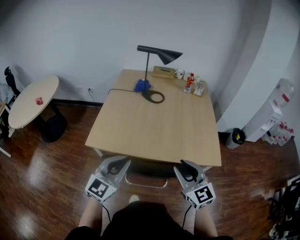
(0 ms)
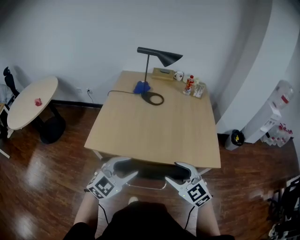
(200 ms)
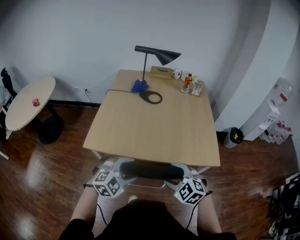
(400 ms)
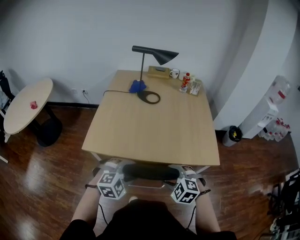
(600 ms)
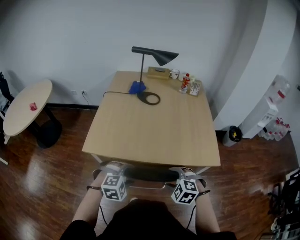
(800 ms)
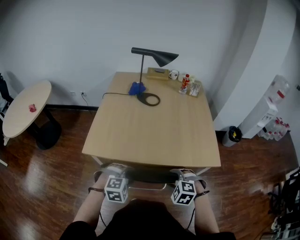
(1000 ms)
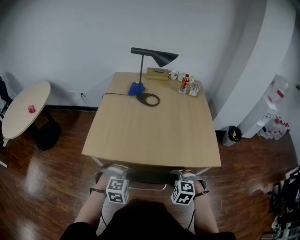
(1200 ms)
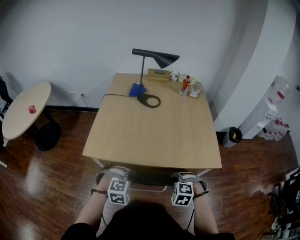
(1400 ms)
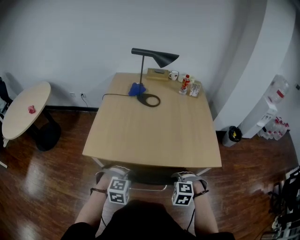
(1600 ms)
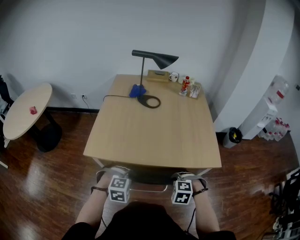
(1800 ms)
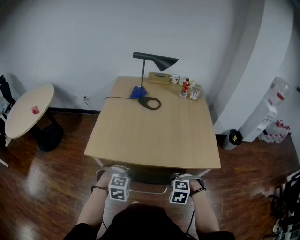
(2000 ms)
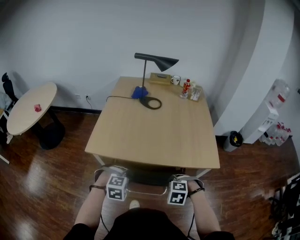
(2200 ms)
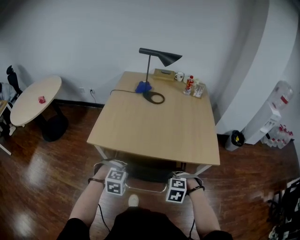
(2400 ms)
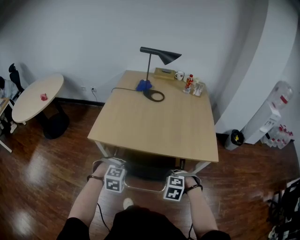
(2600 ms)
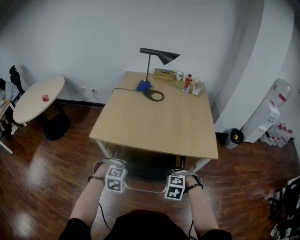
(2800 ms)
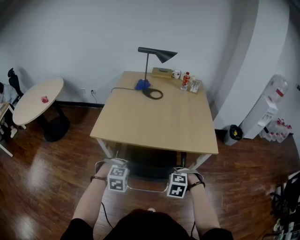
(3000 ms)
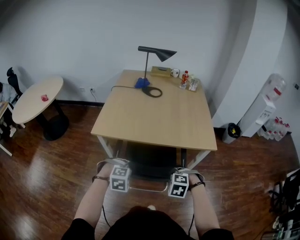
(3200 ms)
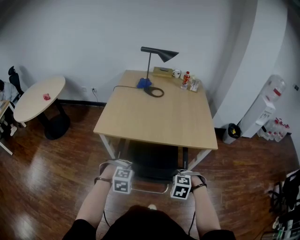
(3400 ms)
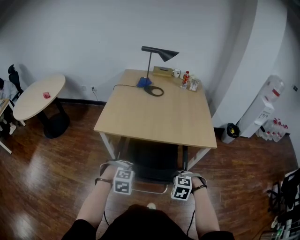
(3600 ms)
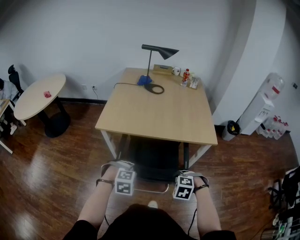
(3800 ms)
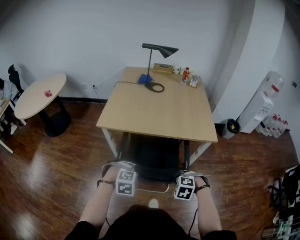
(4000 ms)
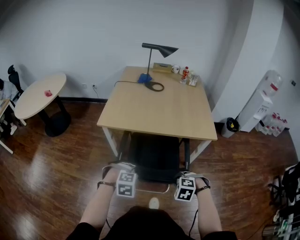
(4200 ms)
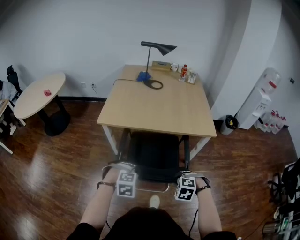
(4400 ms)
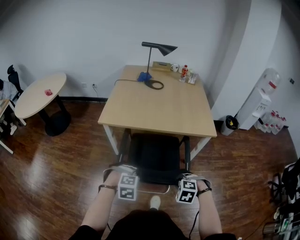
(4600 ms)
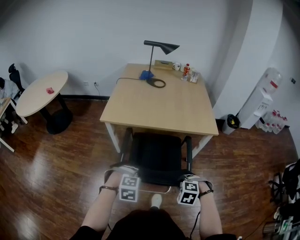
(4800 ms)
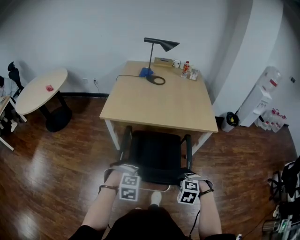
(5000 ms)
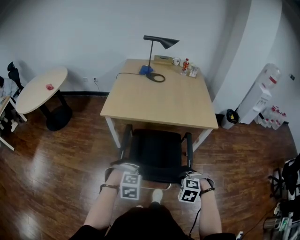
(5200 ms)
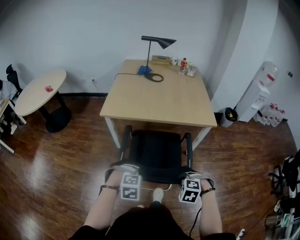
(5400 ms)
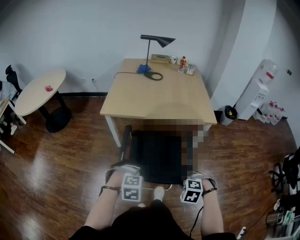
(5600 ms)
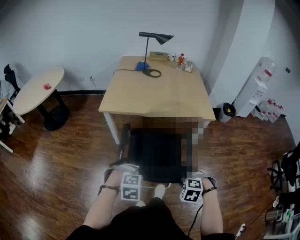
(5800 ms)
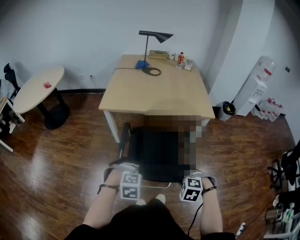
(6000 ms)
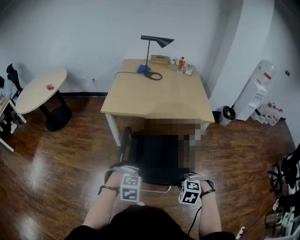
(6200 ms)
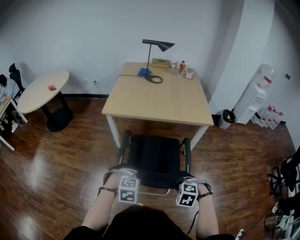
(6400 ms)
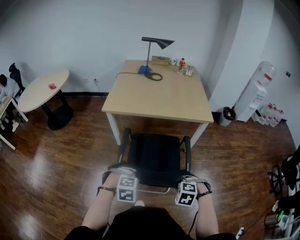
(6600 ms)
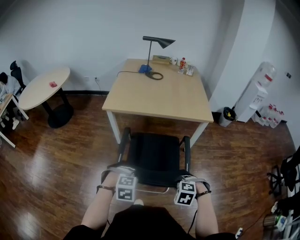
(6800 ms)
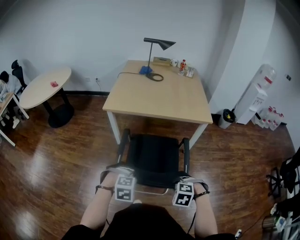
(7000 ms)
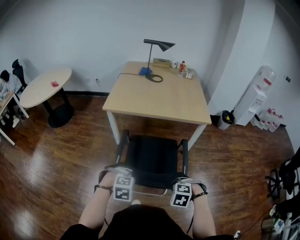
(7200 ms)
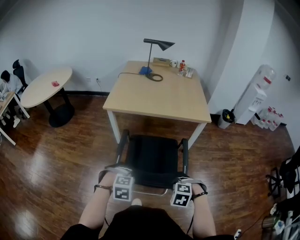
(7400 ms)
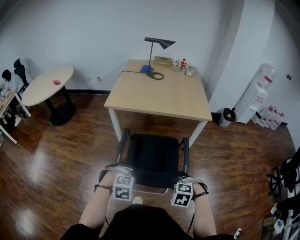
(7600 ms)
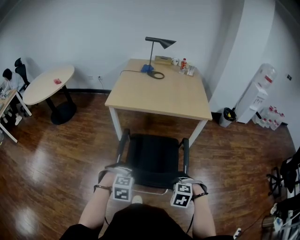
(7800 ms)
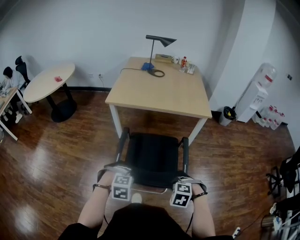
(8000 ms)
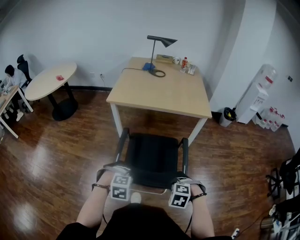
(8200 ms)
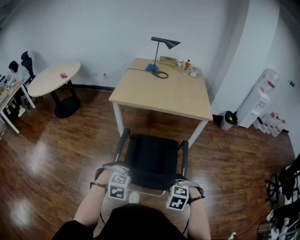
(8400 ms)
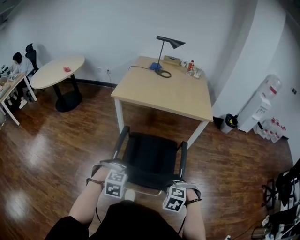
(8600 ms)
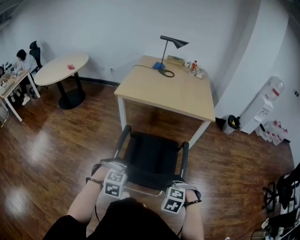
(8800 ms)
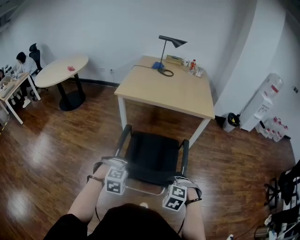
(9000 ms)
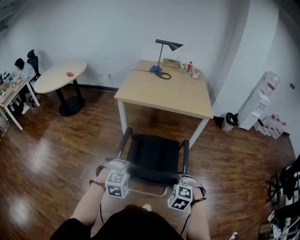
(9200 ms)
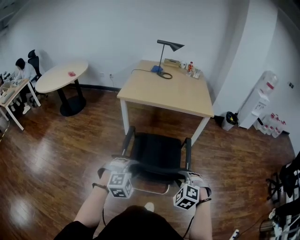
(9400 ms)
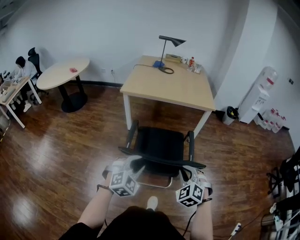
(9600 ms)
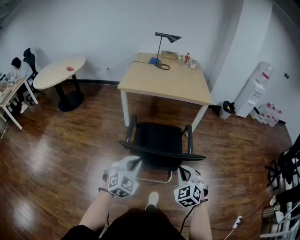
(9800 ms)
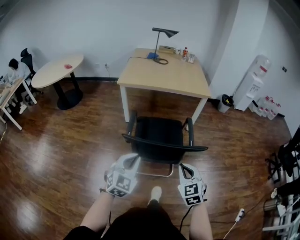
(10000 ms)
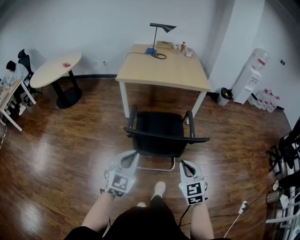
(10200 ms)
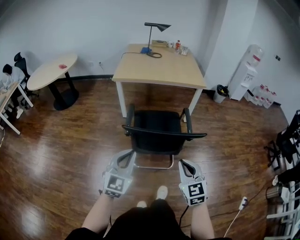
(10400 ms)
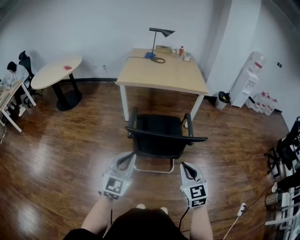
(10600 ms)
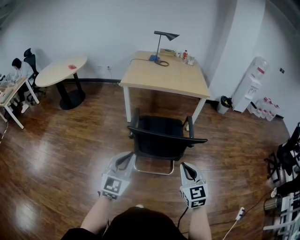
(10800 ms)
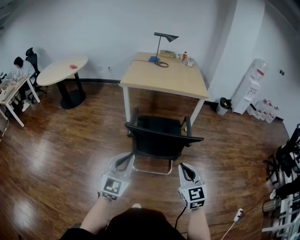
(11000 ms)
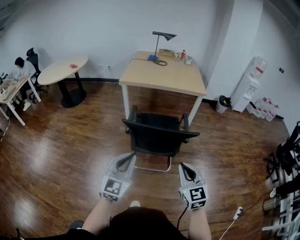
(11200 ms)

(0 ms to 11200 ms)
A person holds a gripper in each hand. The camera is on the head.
0 ms - 1600 ms: The two grippers go approximately 20 cm downward. The right gripper angles its fingers downward, by about 60 degrees, and opens and closes again. The left gripper points its fingers approximately 60 degrees further downward, and opens and closes again.
1600 ms - 3200 ms: The left gripper ends up about 15 cm from where it was, while the right gripper shifts by some 15 cm.
3200 ms - 4800 ms: Both grippers travel together backward, roughly 15 cm.
4800 ms - 6400 ms: The left gripper ends up some 10 cm from where it was; the right gripper shifts by some 10 cm.
6400 ms - 8000 ms: The left gripper moves about 10 cm. The right gripper shifts by approximately 10 cm.
8000 ms - 9600 ms: Both grippers move upward, about 10 cm. The left gripper points its fingers about 40 degrees further upward. Meanwhile the right gripper points its fingers about 40 degrees further upward.
9600 ms - 11200 ms: The left gripper heads backward and upward, covering approximately 20 cm, swivels some 40 degrees, and closes, while the right gripper shifts roughly 20 cm backward, and turns by about 40 degrees.

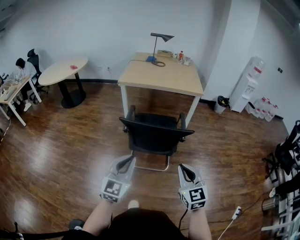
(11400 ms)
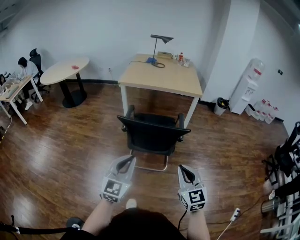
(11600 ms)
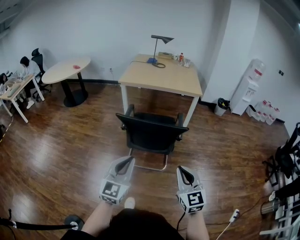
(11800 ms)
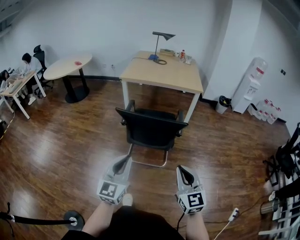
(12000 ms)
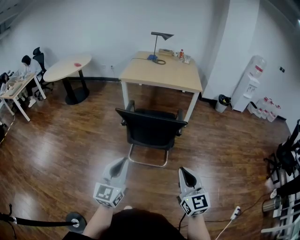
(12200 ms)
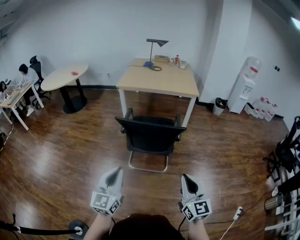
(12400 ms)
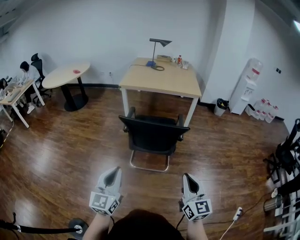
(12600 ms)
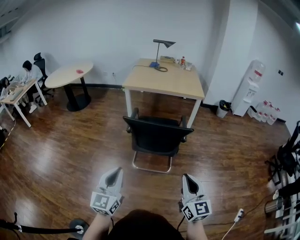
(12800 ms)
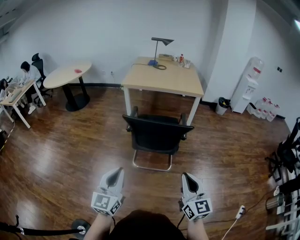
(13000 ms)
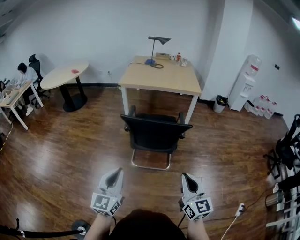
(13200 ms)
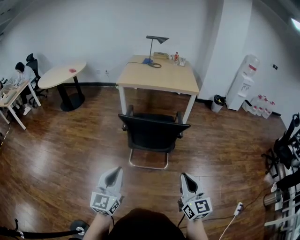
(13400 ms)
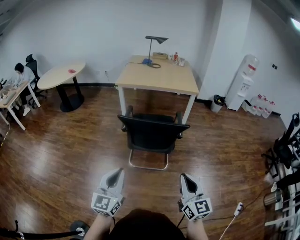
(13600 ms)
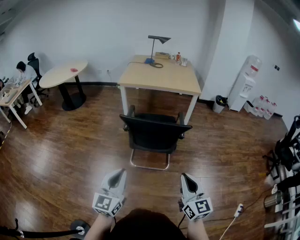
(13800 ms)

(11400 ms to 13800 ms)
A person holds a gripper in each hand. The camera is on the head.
11400 ms - 12600 ms: Both grippers travel together backward, approximately 10 cm. The right gripper swivels roughly 20 degrees.
12600 ms - 13800 ms: The grippers move only a little.

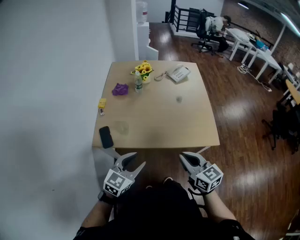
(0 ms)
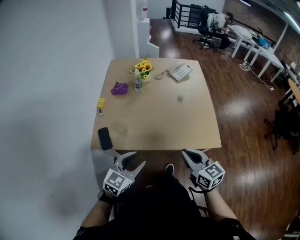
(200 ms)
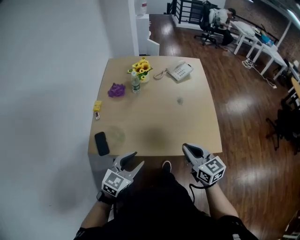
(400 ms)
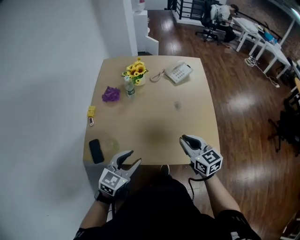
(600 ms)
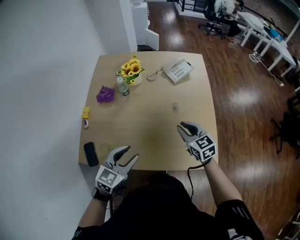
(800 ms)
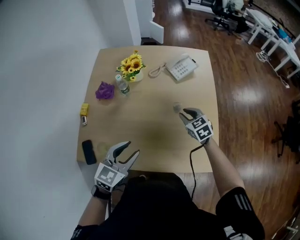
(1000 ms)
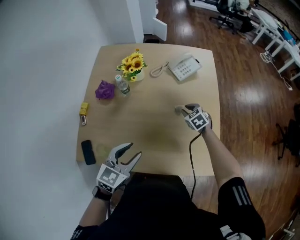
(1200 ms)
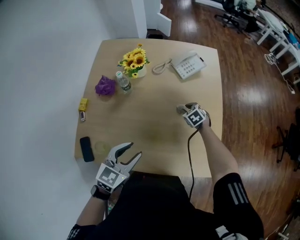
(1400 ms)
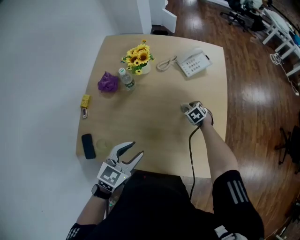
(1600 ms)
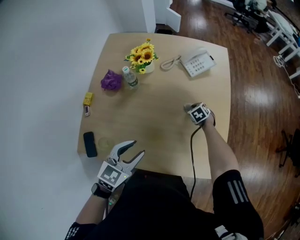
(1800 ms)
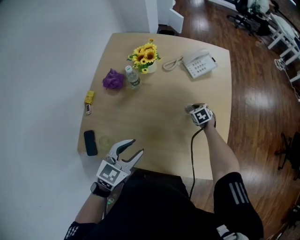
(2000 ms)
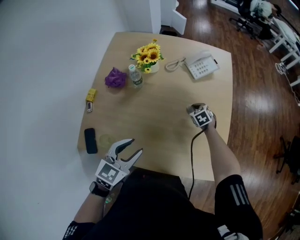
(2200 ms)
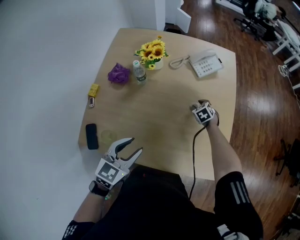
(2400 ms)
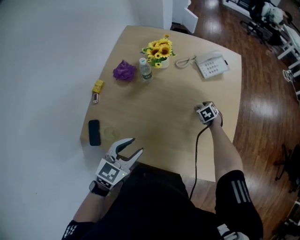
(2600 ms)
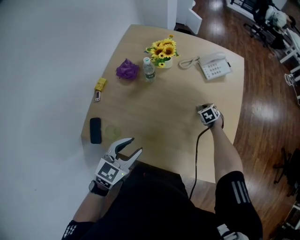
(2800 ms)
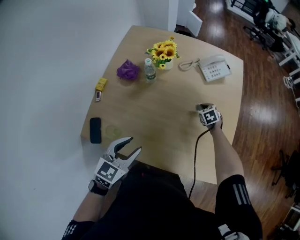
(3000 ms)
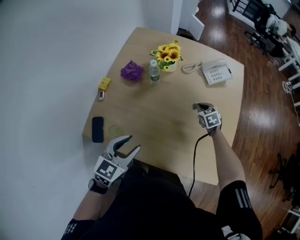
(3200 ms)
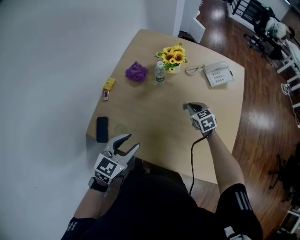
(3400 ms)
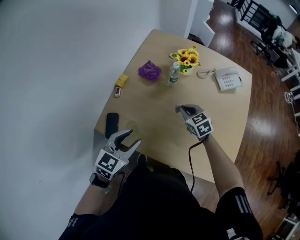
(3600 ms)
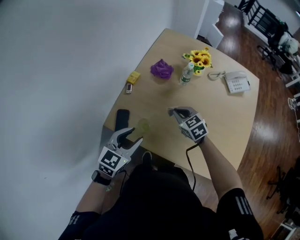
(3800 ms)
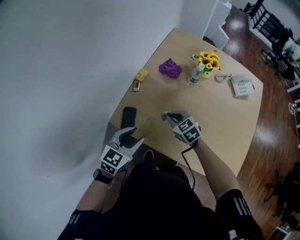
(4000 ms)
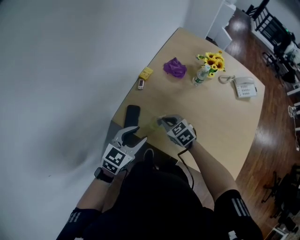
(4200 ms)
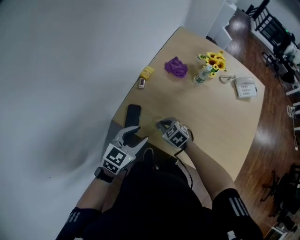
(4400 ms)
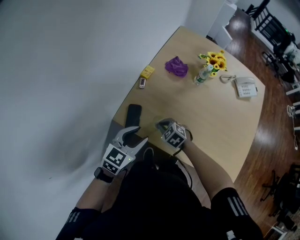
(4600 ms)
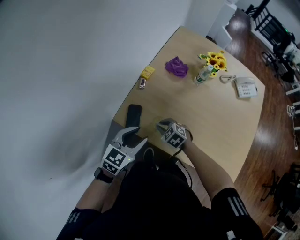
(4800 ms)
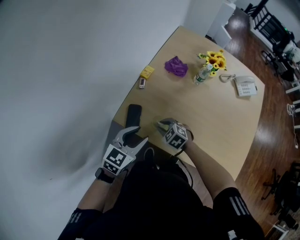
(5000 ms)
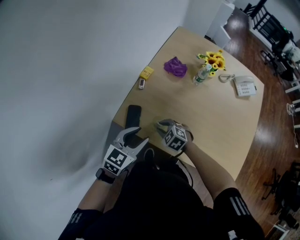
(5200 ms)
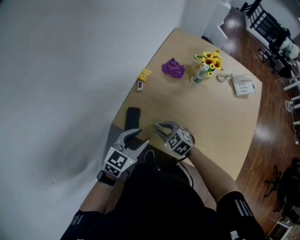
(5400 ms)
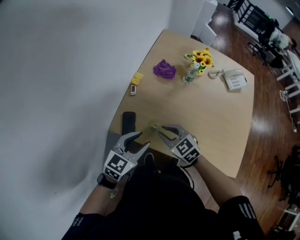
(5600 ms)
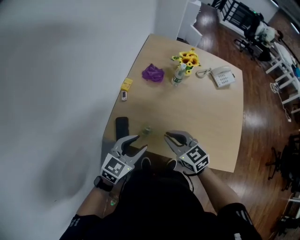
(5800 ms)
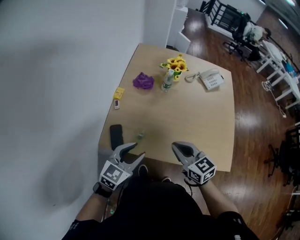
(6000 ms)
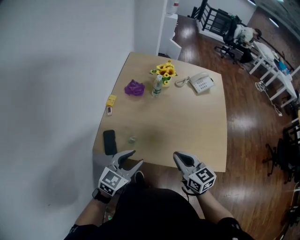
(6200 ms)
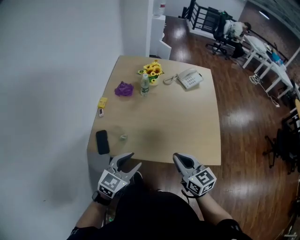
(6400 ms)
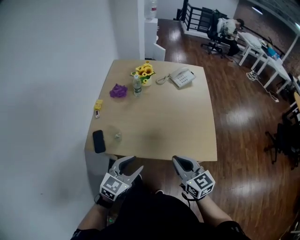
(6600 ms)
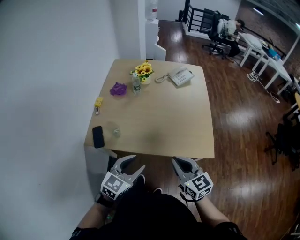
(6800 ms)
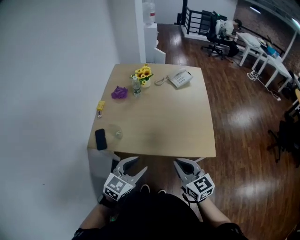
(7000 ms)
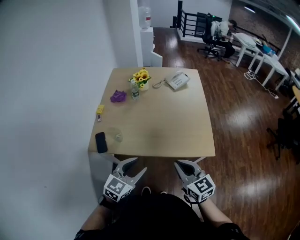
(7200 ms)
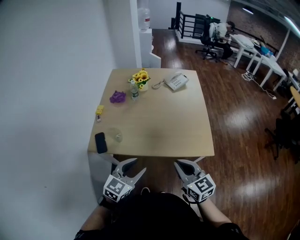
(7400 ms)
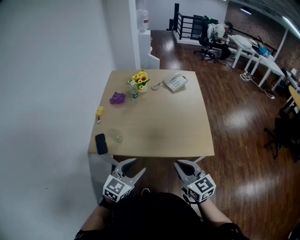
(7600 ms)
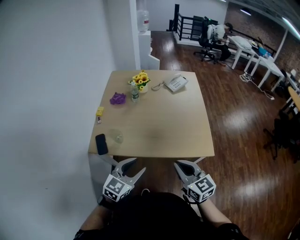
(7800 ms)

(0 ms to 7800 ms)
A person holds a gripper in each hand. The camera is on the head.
0 ms - 1600 ms: The right gripper shifts roughly 60 cm forward and downward, points its fingers roughly 50 degrees further downward, and opens up. Meanwhile the left gripper travels forward by roughly 30 cm.
1600 ms - 3200 ms: The right gripper is displaced upward and to the left by about 10 cm, and closes. Meanwhile the left gripper heads to the left, covering some 10 cm.
3200 ms - 4600 ms: The left gripper goes about 20 cm to the left. Meanwhile the right gripper is displaced to the left by approximately 50 cm, and changes its angle by about 40 degrees.
4600 ms - 6200 ms: The left gripper shifts by approximately 10 cm. The right gripper changes place by about 30 cm, tilts its fingers about 40 degrees upward, and opens and closes again.
6200 ms - 7800 ms: The left gripper moves to the right and backward, approximately 20 cm. Meanwhile the right gripper shifts approximately 20 cm backward and to the right.

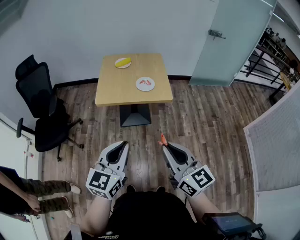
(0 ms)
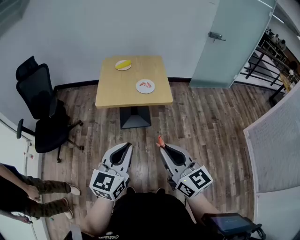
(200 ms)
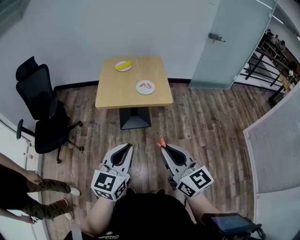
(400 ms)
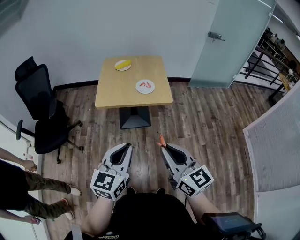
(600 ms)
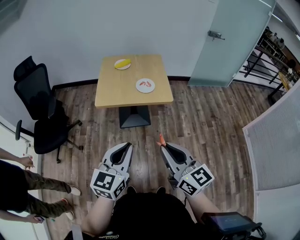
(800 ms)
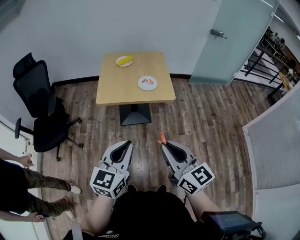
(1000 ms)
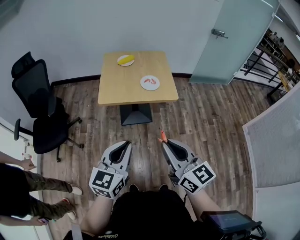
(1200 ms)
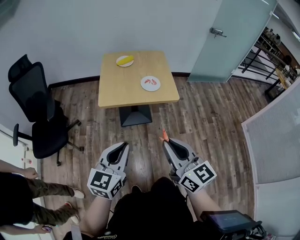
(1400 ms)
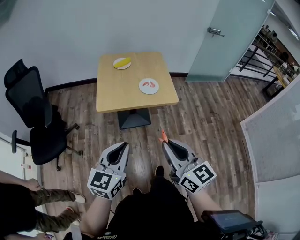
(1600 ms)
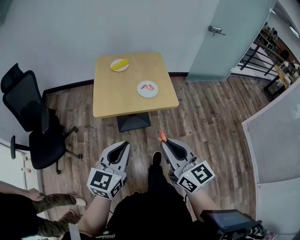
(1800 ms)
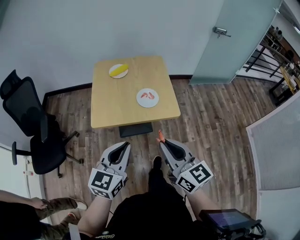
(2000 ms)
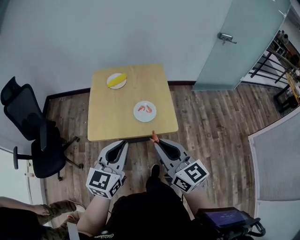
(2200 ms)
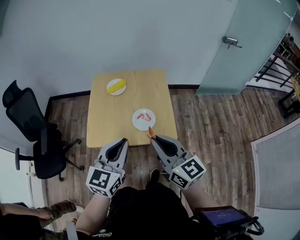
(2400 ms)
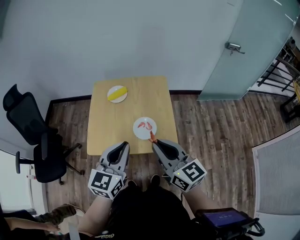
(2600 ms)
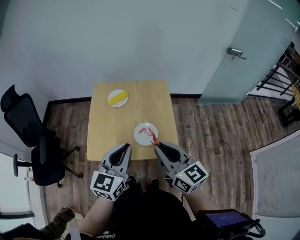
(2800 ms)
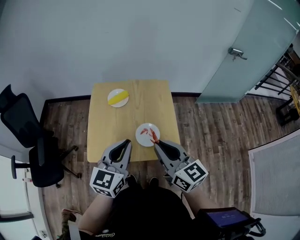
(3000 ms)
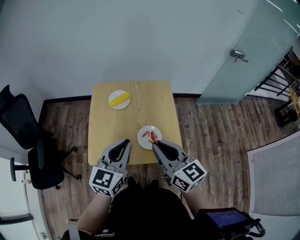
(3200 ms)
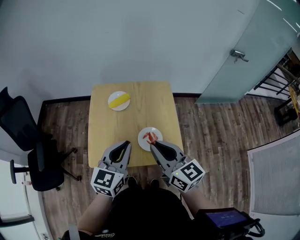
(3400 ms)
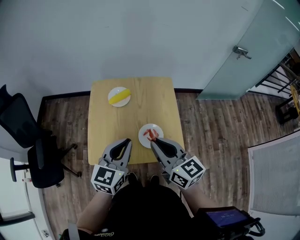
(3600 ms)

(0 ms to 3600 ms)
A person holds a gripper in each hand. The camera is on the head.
0 ms - 1800 ms: Both grippers move forward and to the left, some 15 cm.
1800 ms - 3600 ms: Both grippers move forward, about 35 cm.
